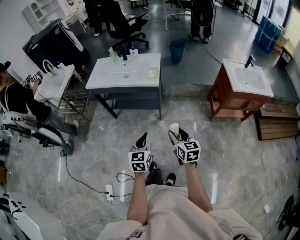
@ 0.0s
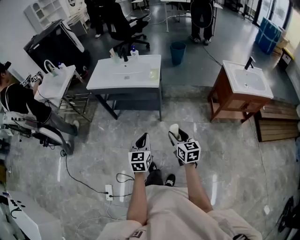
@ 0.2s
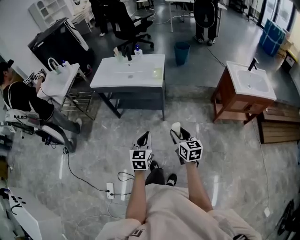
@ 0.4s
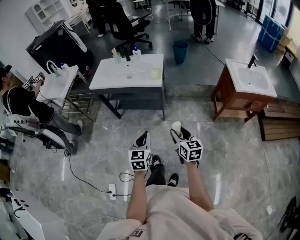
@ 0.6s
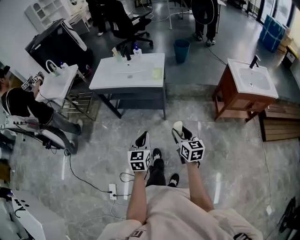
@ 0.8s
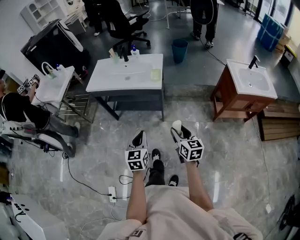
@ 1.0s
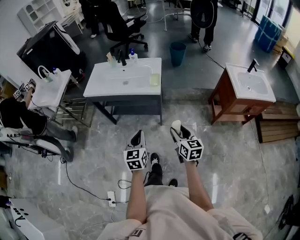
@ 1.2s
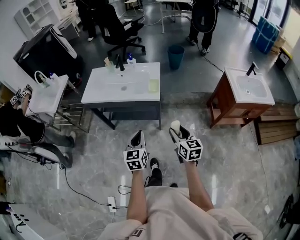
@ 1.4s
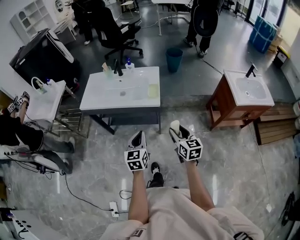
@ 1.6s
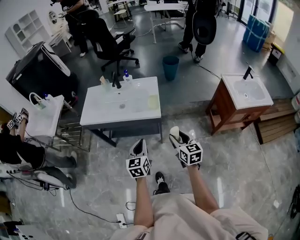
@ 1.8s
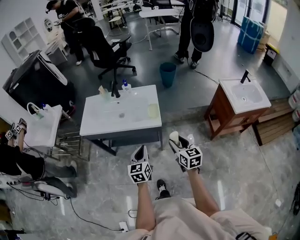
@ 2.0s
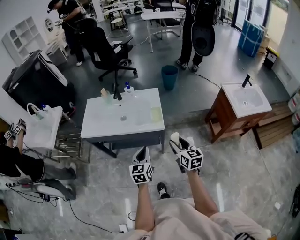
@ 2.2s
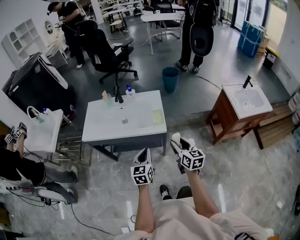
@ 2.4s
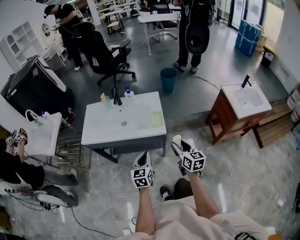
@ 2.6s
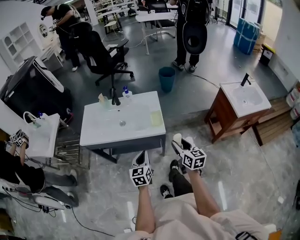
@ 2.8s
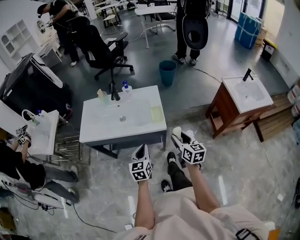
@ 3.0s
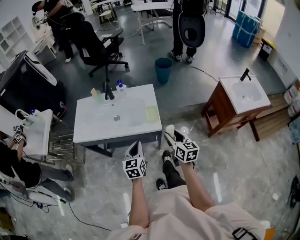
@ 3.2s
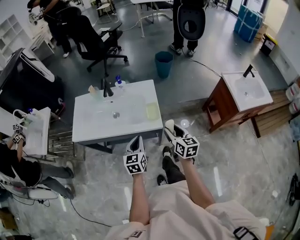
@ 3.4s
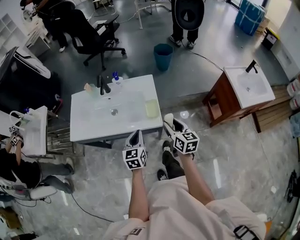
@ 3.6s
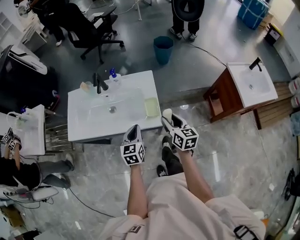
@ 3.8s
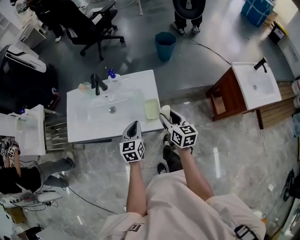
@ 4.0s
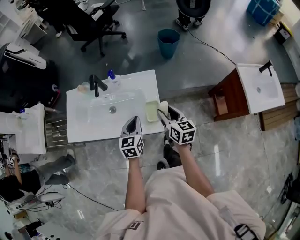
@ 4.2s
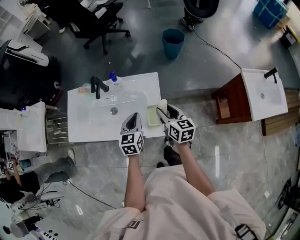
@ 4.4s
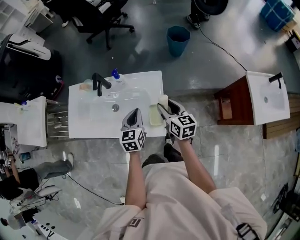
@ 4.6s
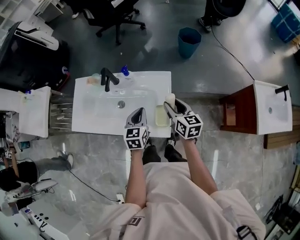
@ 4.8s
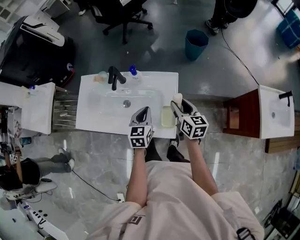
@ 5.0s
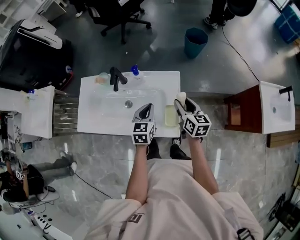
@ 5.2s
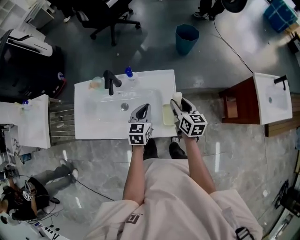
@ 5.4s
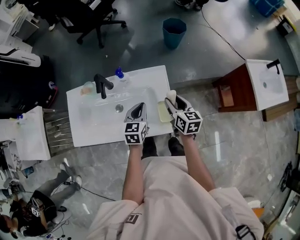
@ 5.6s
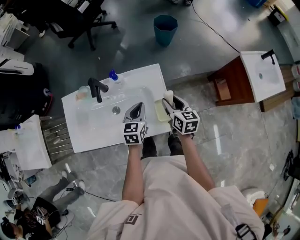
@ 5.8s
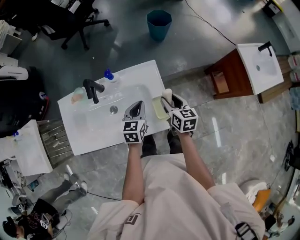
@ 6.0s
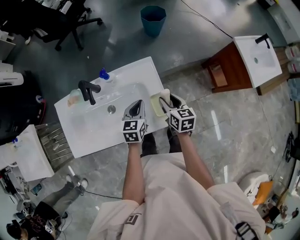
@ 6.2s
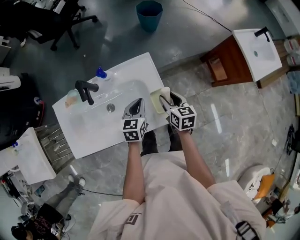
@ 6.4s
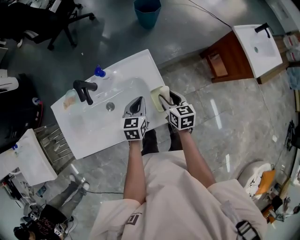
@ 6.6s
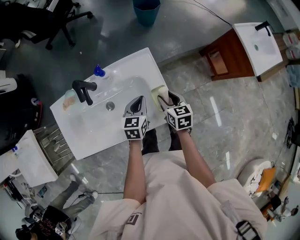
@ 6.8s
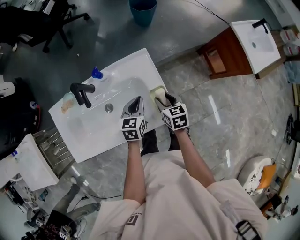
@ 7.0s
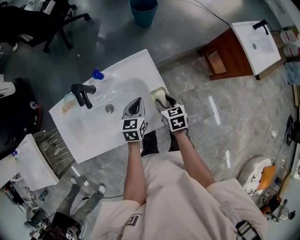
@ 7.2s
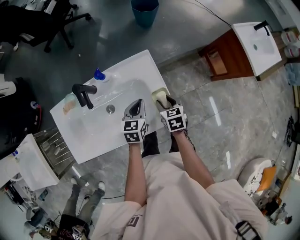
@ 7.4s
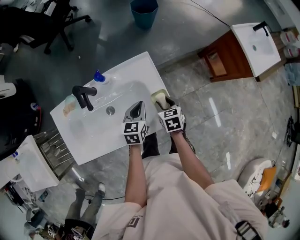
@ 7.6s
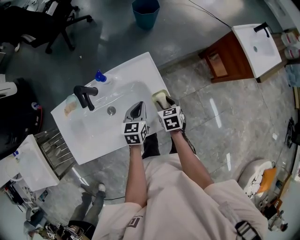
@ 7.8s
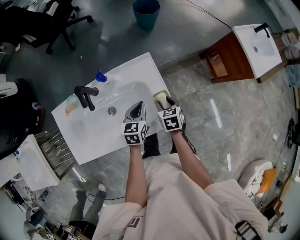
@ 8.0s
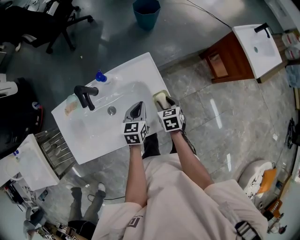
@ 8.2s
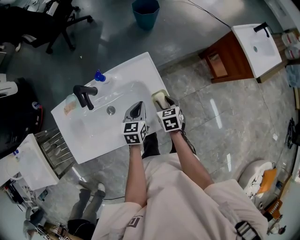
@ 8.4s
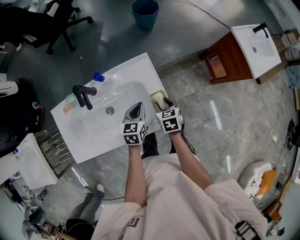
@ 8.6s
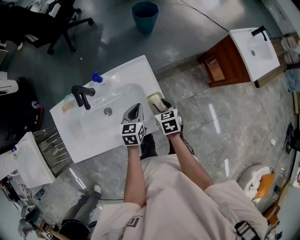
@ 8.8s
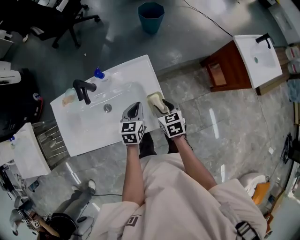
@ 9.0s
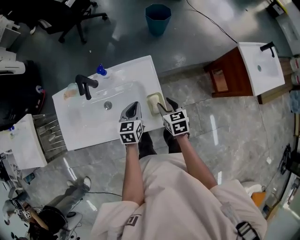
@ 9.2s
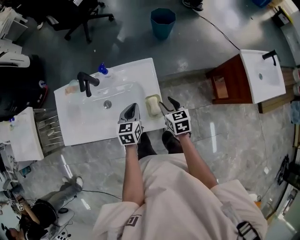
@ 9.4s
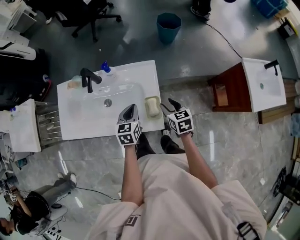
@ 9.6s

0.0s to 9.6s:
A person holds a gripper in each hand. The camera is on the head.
0.0s to 1.6s: The two grippers go about 15 cm forward.
1.6s to 3.2s: The two grippers go about 15 cm forward.
3.2s to 4.8s: The two grippers go approximately 25 cm forward.
4.8s to 6.4s: The two grippers go approximately 5 cm downward. The right gripper changes its angle by some 20 degrees, while the left gripper turns by some 30 degrees.
6.4s to 8.0s: The right gripper travels downward by approximately 5 cm, and swivels about 20 degrees.
8.0s to 9.6s: The right gripper travels to the right and upward by some 10 cm, and changes its angle by roughly 30 degrees, while the left gripper rotates about 20 degrees.

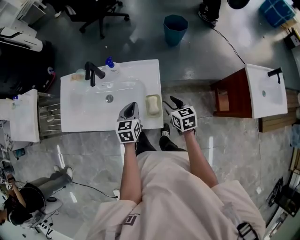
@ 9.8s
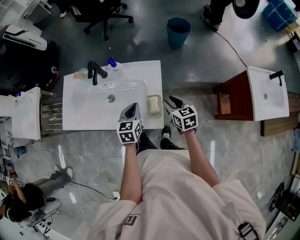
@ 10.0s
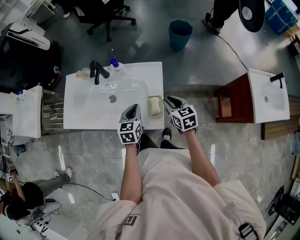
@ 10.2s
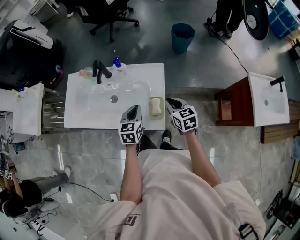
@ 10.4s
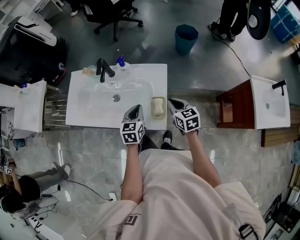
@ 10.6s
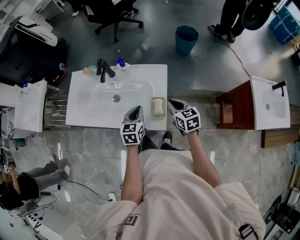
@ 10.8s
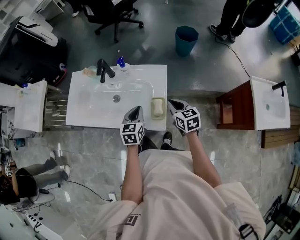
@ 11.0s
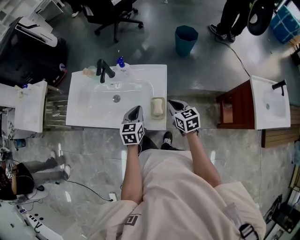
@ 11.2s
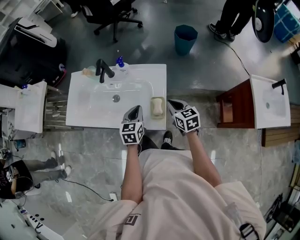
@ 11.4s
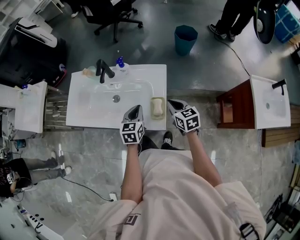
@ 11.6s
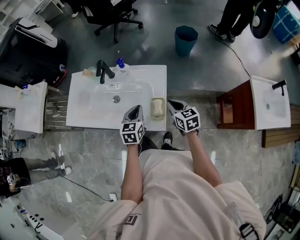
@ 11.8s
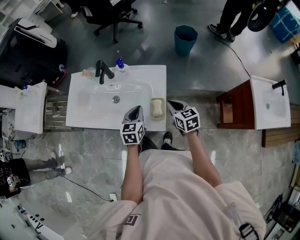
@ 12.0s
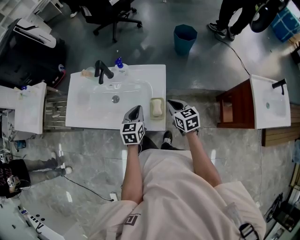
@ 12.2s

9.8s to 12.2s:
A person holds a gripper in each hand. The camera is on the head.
9.8s to 11.0s: The right gripper closes up.
11.0s to 12.2s: Neither gripper changes place.

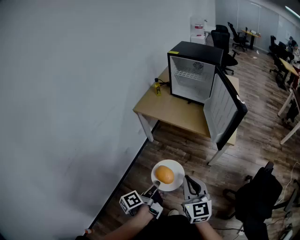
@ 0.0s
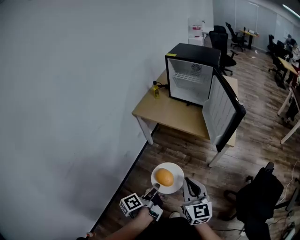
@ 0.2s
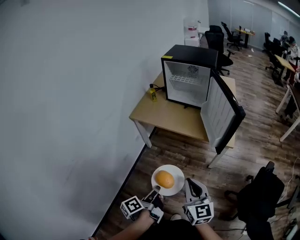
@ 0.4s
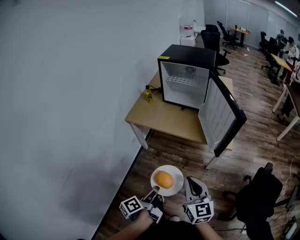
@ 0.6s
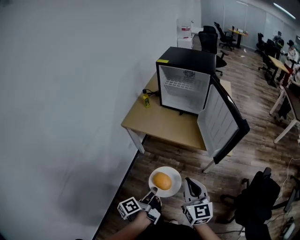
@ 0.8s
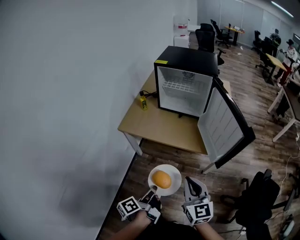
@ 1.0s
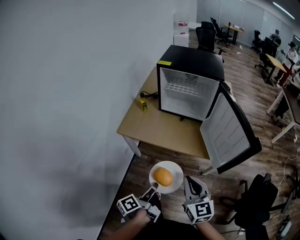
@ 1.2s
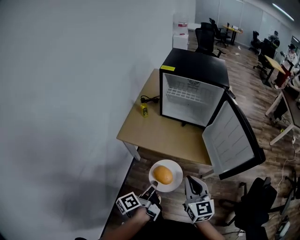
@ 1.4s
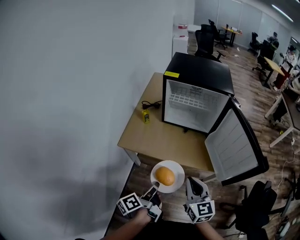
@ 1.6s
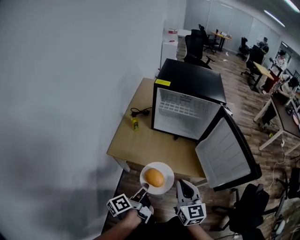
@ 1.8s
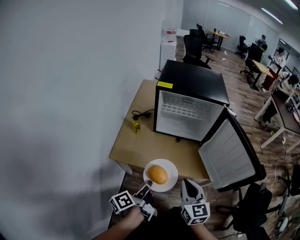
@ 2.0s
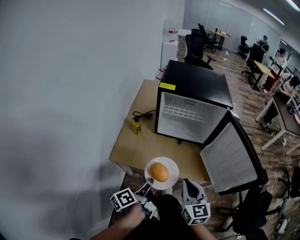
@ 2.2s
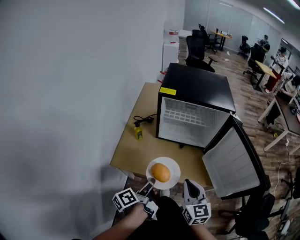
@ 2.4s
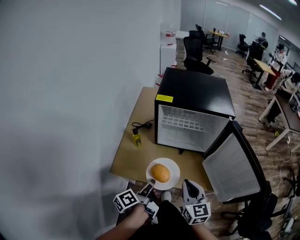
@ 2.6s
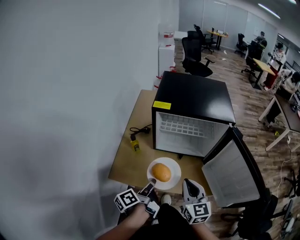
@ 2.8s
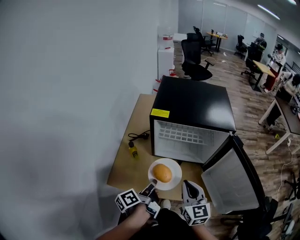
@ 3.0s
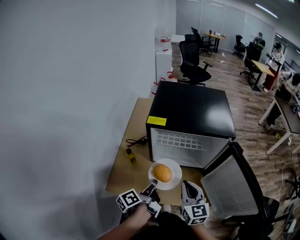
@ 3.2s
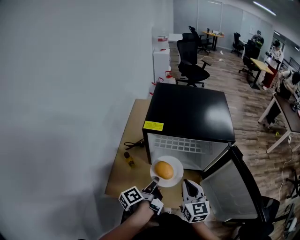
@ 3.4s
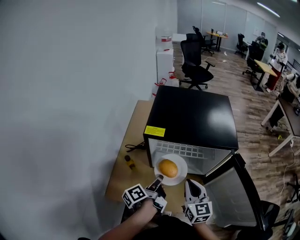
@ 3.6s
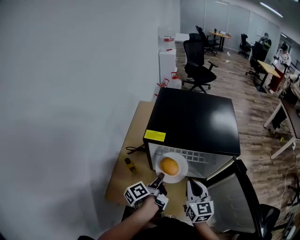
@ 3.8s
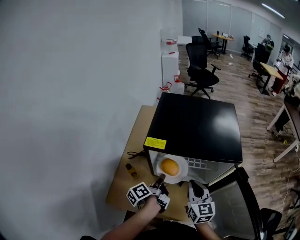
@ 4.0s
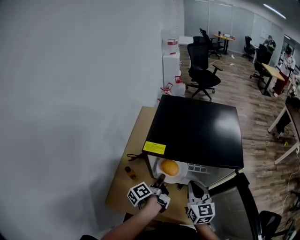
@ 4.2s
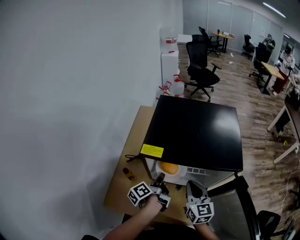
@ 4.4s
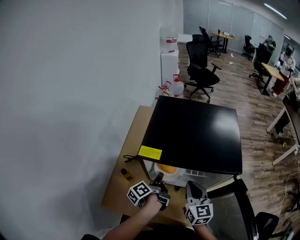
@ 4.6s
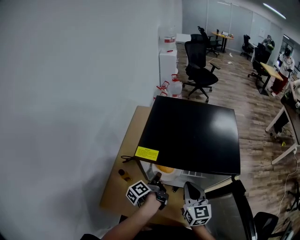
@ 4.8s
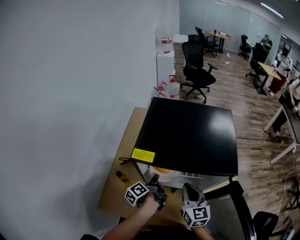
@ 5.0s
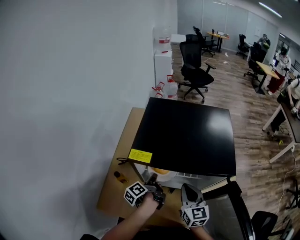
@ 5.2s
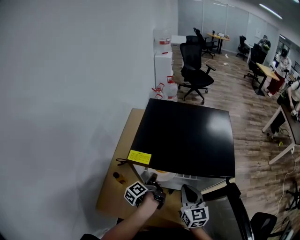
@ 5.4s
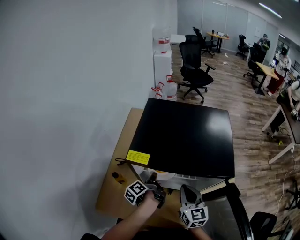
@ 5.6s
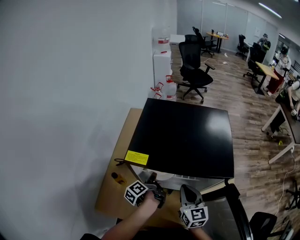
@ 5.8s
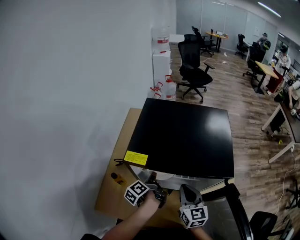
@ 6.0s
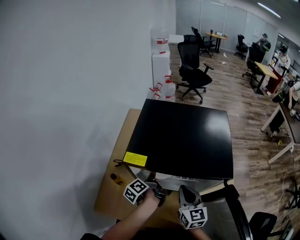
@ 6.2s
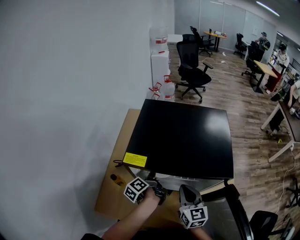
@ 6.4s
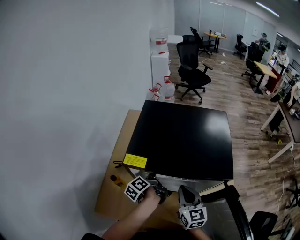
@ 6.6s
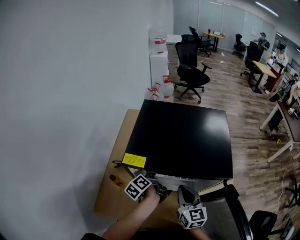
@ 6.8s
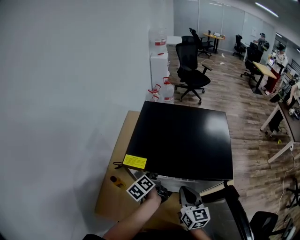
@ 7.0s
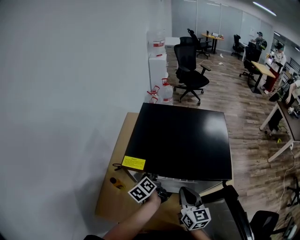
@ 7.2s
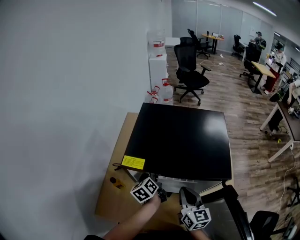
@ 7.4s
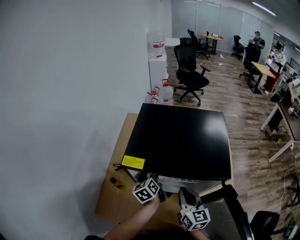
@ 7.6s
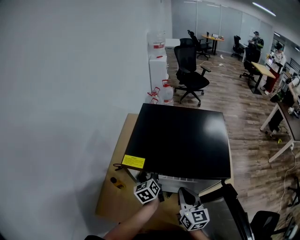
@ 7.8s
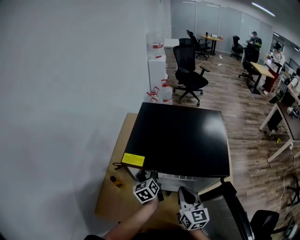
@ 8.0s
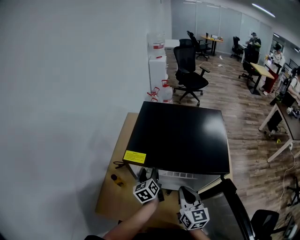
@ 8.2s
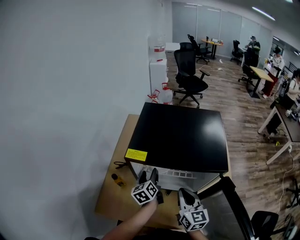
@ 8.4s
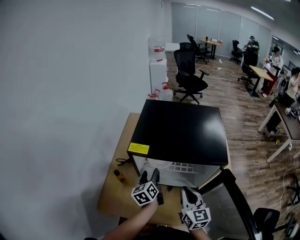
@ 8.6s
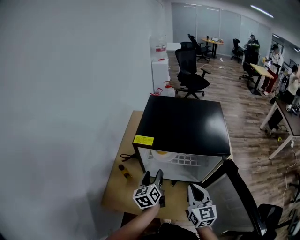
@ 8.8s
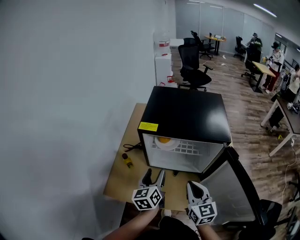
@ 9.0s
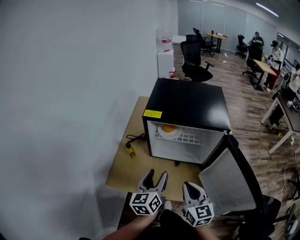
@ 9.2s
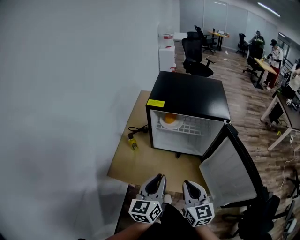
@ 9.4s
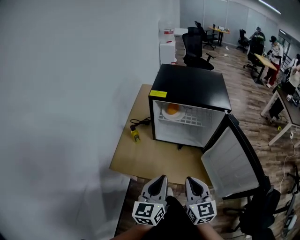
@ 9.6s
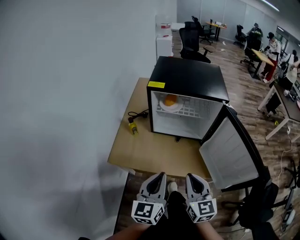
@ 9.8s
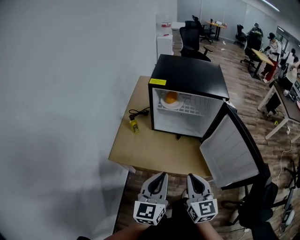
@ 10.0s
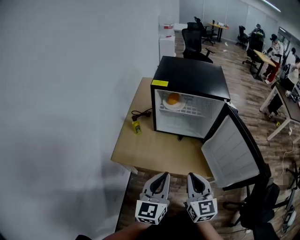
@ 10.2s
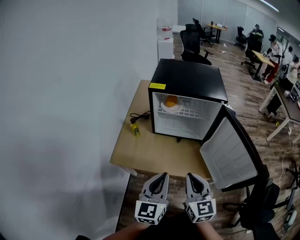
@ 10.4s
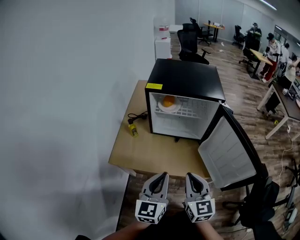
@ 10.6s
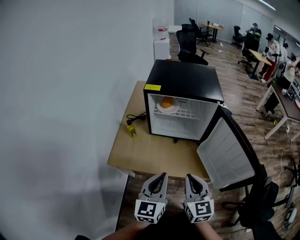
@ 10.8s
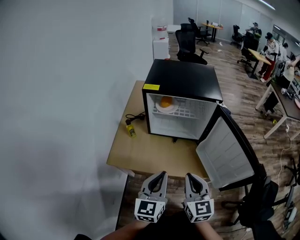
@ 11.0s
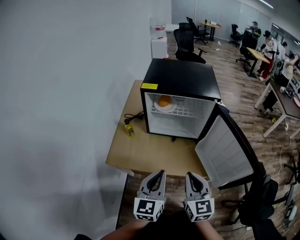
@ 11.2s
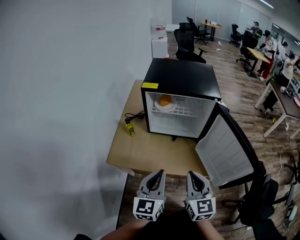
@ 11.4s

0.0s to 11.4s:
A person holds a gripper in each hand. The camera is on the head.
0.0s to 1.4s: The two grippers go approximately 30 cm forward.
1.4s to 2.8s: Both grippers travel together forward, some 25 cm.
2.8s to 4.2s: The two grippers go approximately 20 cm forward.
4.2s to 5.6s: The left gripper moves forward, approximately 5 cm.
5.6s to 7.2s: The left gripper ends up approximately 5 cm from where it was, swivels roughly 30 degrees, and opens.
7.2s to 8.6s: The grippers both shift backward by about 5 cm. The left gripper opens.
8.6s to 10.0s: Both grippers move backward, roughly 30 cm. The left gripper swivels roughly 30 degrees, and closes its fingers.
10.0s to 11.4s: The grippers make only small movements.
